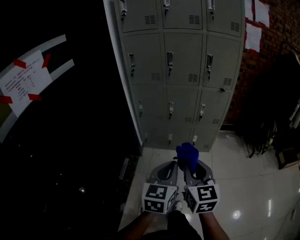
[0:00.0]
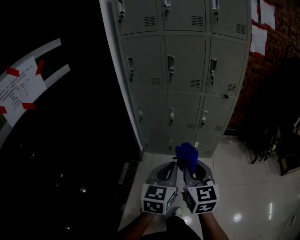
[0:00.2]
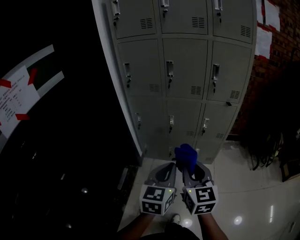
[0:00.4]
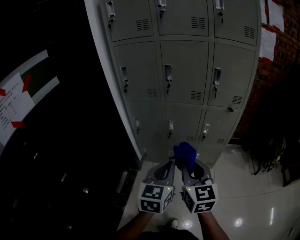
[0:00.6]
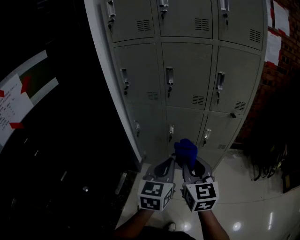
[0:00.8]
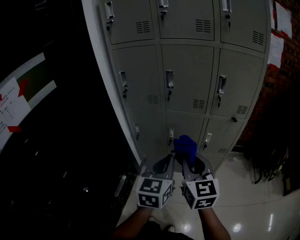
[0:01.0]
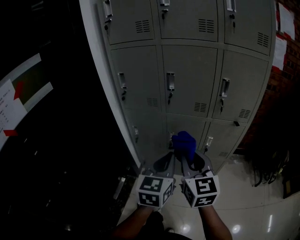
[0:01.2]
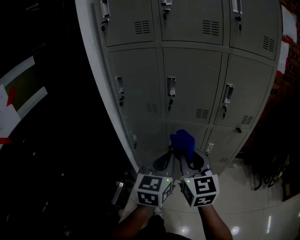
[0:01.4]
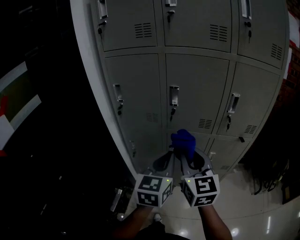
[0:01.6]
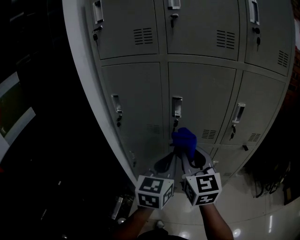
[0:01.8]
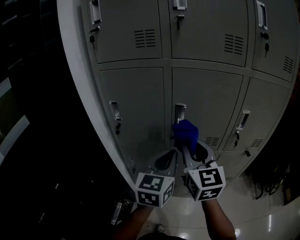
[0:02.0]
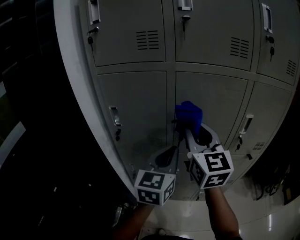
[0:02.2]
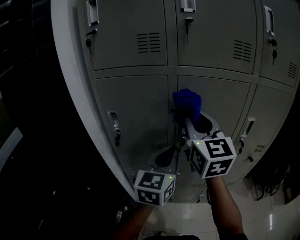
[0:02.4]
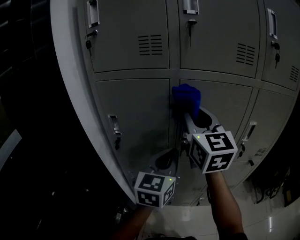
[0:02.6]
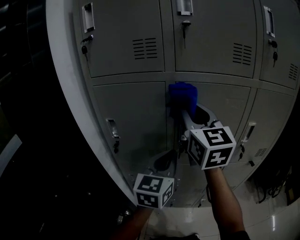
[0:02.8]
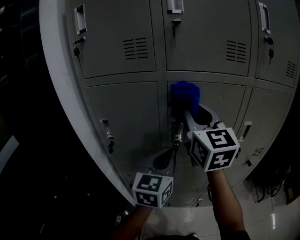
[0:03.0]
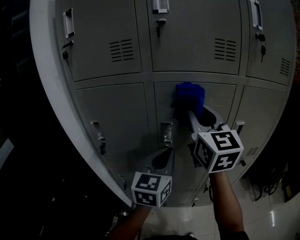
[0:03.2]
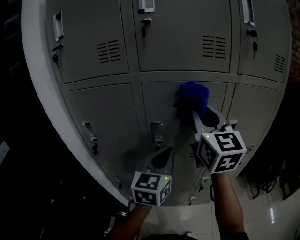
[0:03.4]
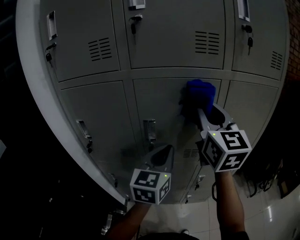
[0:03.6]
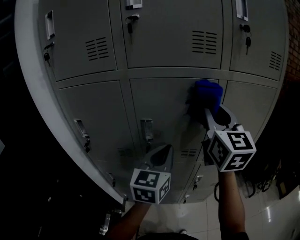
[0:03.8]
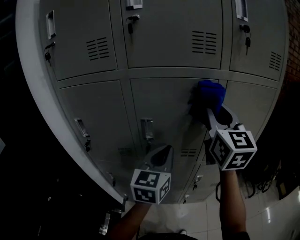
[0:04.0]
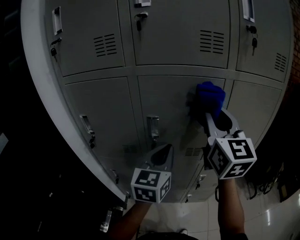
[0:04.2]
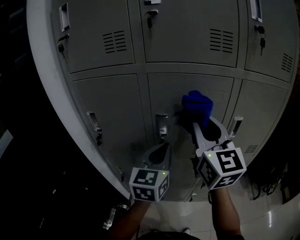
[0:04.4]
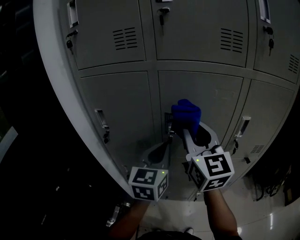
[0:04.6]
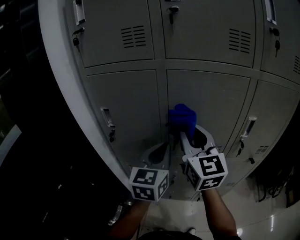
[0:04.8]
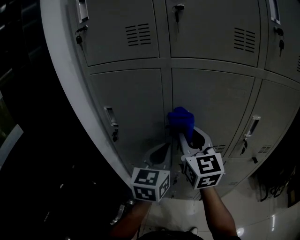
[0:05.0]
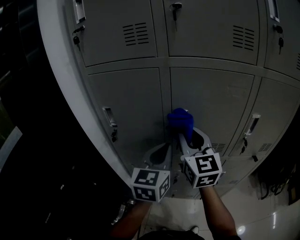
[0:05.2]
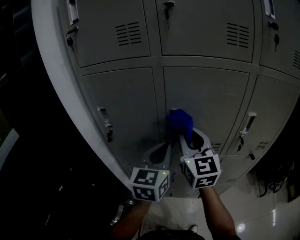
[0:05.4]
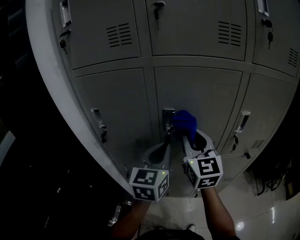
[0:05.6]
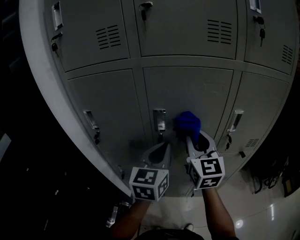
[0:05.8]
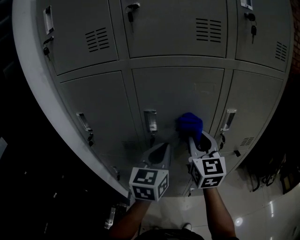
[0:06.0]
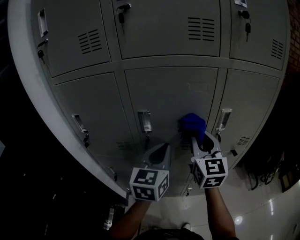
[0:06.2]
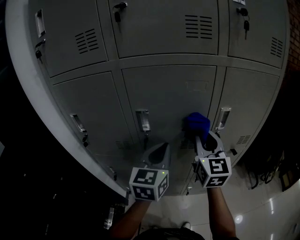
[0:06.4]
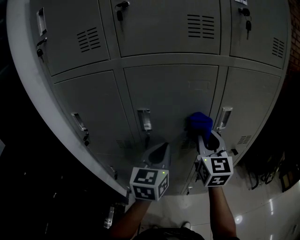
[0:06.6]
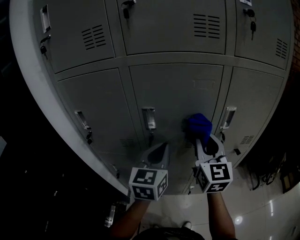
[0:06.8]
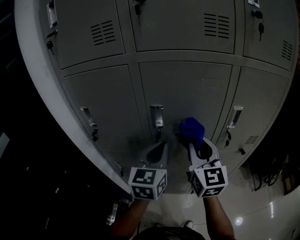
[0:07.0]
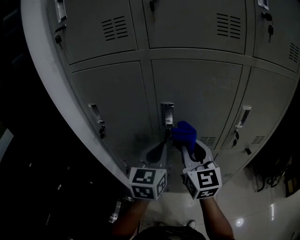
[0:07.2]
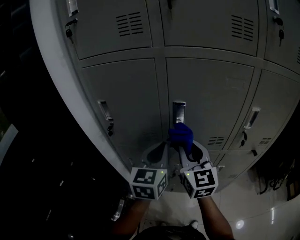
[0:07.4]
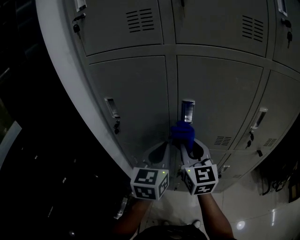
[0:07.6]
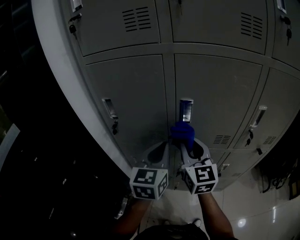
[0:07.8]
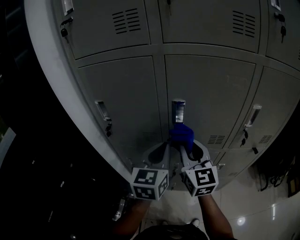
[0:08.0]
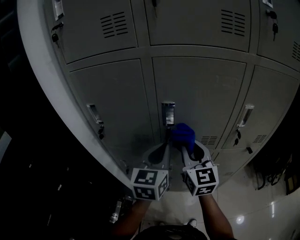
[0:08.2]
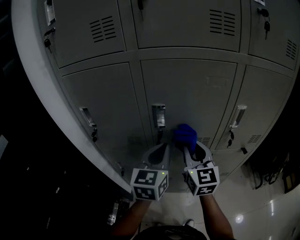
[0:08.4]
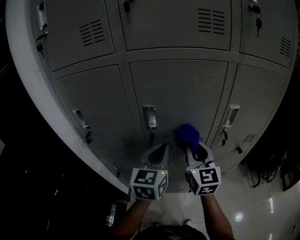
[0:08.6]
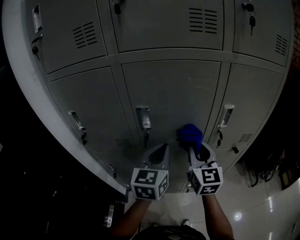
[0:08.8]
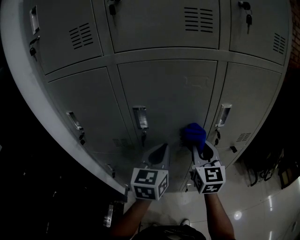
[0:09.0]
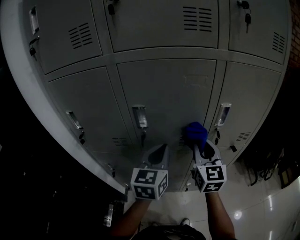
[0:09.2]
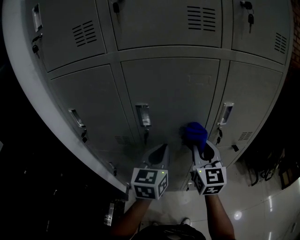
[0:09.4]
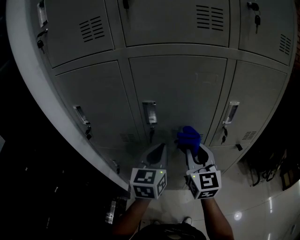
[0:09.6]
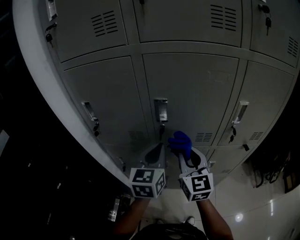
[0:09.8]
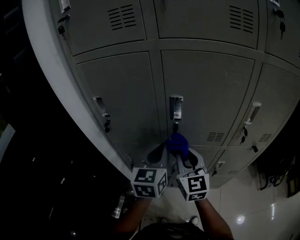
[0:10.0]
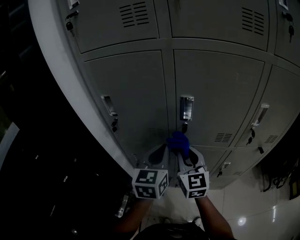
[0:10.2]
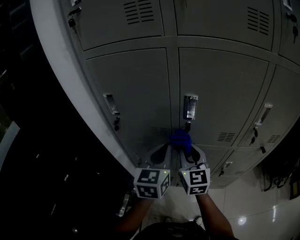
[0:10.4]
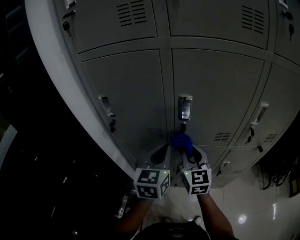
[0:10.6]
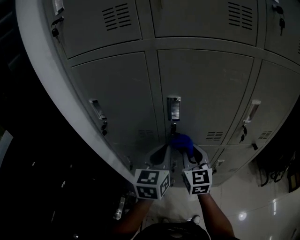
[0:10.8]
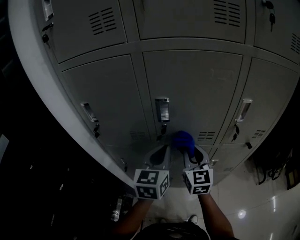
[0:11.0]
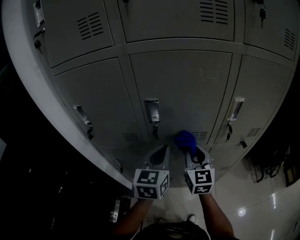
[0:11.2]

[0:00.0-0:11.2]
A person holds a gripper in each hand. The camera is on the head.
0:00.0 to 0:01.6: The pair of grippers is taken forward, about 40 cm.
0:01.6 to 0:03.2: The left gripper travels forward by about 20 cm, while the right gripper moves forward and upward, roughly 30 cm.
0:03.2 to 0:04.8: The right gripper travels downward by roughly 10 cm, and moves some 10 cm to the right and comes back.
0:04.8 to 0:06.4: The left gripper heads to the right, covering roughly 10 cm; the right gripper goes roughly 15 cm to the right.
0:06.4 to 0:08.0: The grippers both shift to the left by some 15 cm.
0:08.0 to 0:09.6: The two grippers go roughly 10 cm to the right.
0:09.6 to 0:11.2: The left gripper travels to the left and back again, roughly 10 cm each way. Meanwhile the right gripper travels downward by about 5 cm, and travels to the left and back again, roughly 15 cm each way.

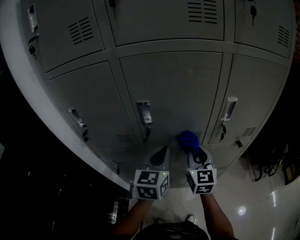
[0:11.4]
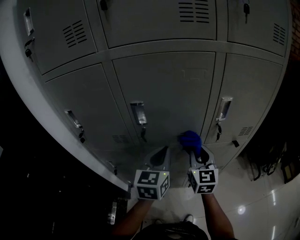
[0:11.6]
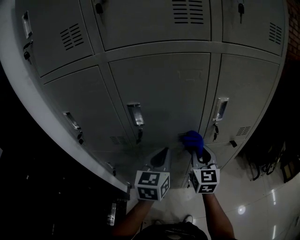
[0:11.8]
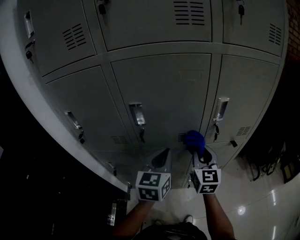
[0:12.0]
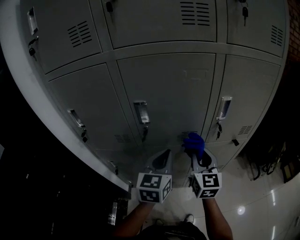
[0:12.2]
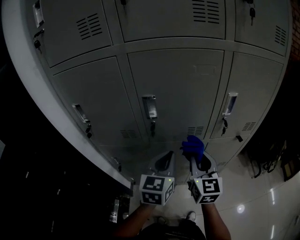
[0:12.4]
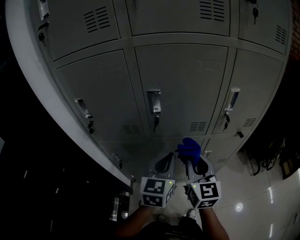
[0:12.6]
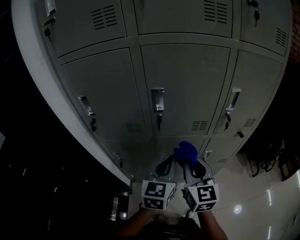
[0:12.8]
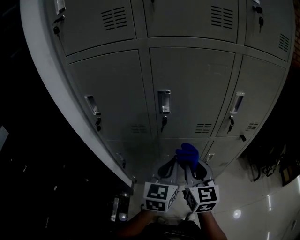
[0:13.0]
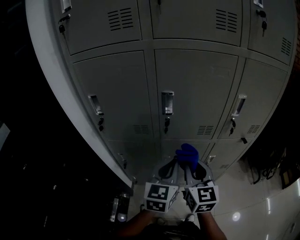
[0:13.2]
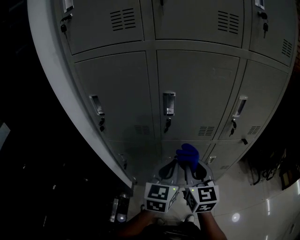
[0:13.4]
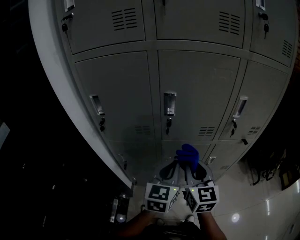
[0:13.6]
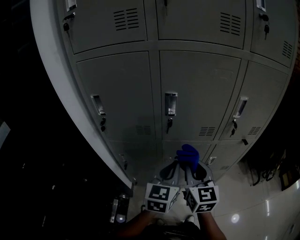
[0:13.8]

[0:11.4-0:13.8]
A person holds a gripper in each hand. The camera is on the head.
0:11.4 to 0:12.6: The right gripper heads backward, covering approximately 10 cm; the left gripper shifts roughly 5 cm backward.
0:12.6 to 0:13.8: The grippers make only small movements.

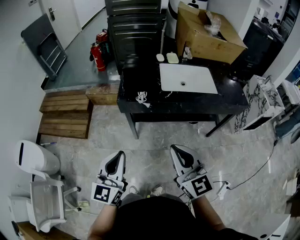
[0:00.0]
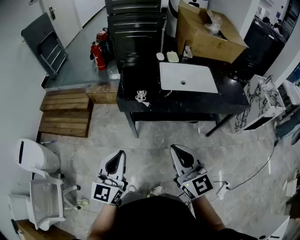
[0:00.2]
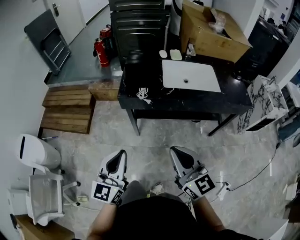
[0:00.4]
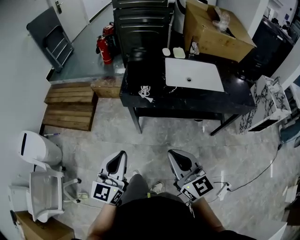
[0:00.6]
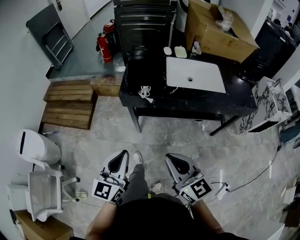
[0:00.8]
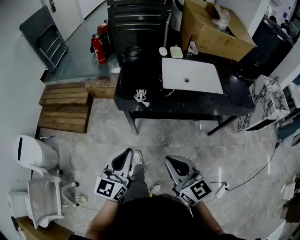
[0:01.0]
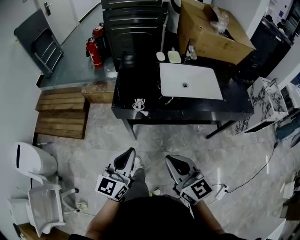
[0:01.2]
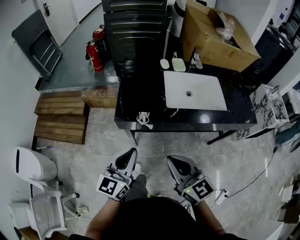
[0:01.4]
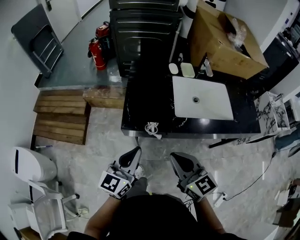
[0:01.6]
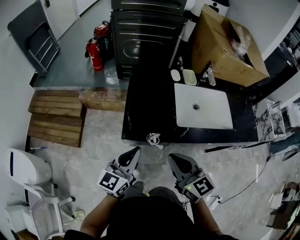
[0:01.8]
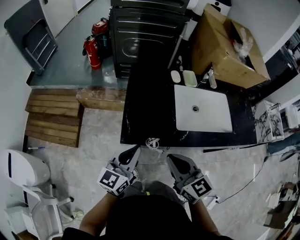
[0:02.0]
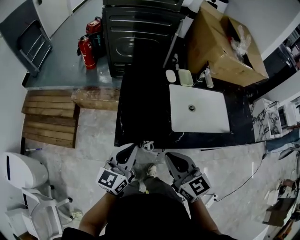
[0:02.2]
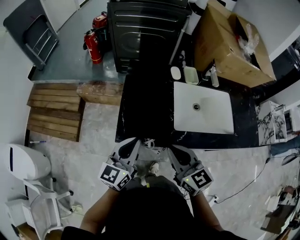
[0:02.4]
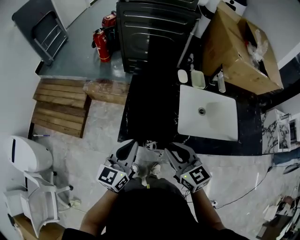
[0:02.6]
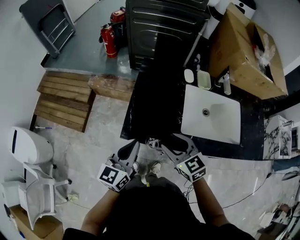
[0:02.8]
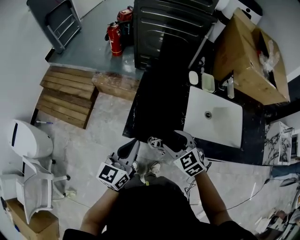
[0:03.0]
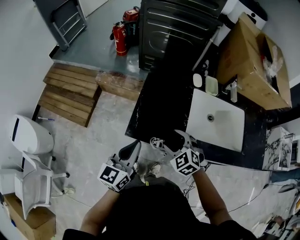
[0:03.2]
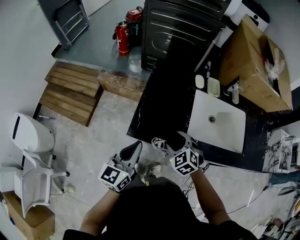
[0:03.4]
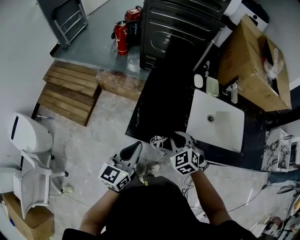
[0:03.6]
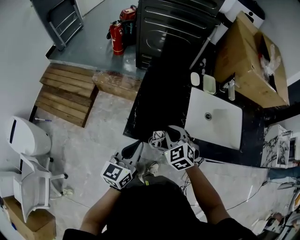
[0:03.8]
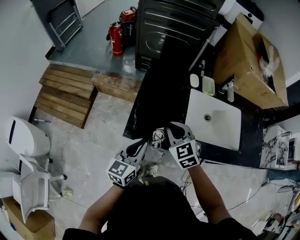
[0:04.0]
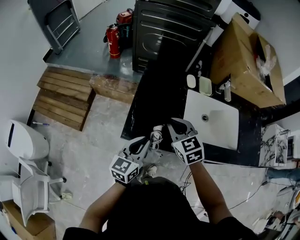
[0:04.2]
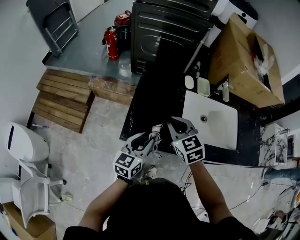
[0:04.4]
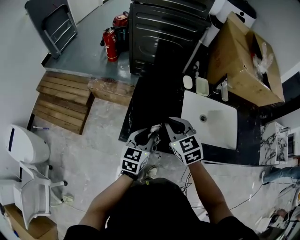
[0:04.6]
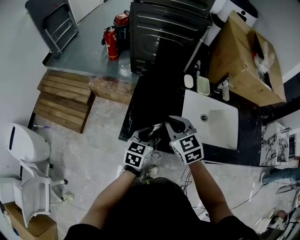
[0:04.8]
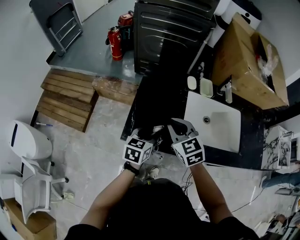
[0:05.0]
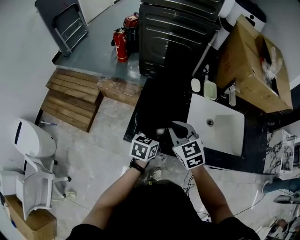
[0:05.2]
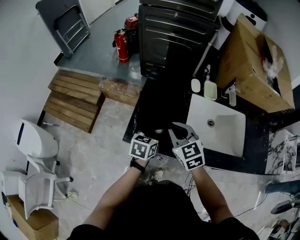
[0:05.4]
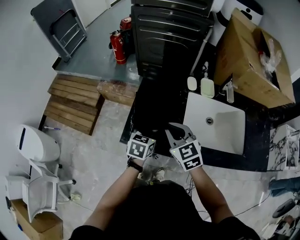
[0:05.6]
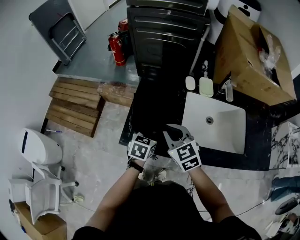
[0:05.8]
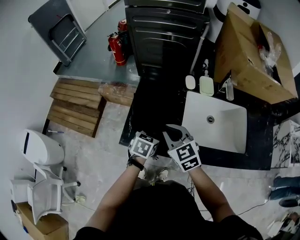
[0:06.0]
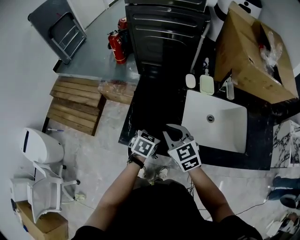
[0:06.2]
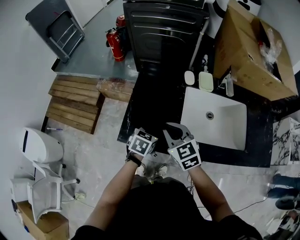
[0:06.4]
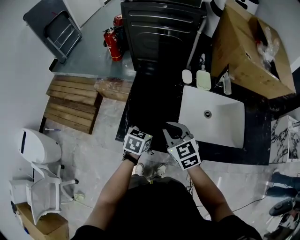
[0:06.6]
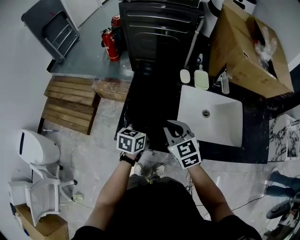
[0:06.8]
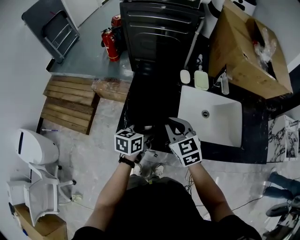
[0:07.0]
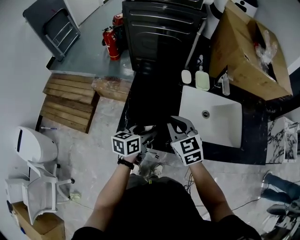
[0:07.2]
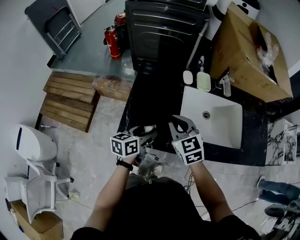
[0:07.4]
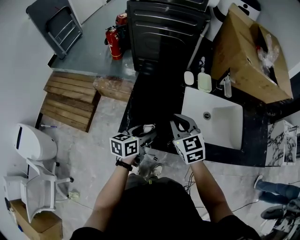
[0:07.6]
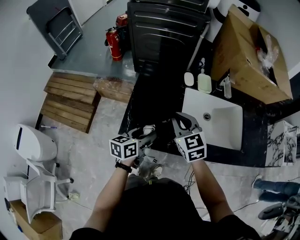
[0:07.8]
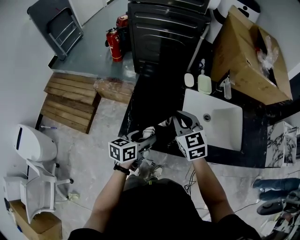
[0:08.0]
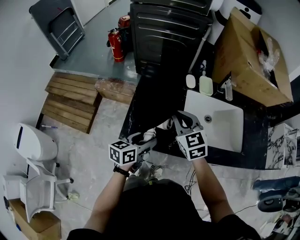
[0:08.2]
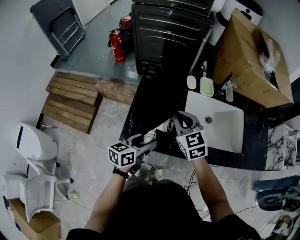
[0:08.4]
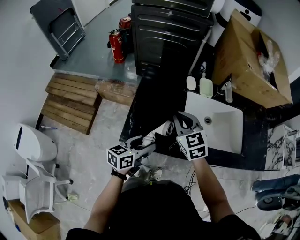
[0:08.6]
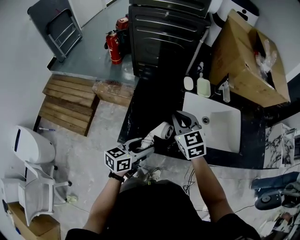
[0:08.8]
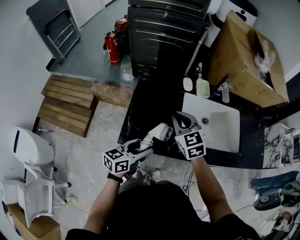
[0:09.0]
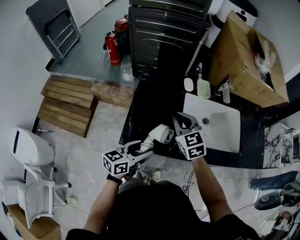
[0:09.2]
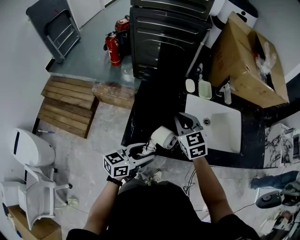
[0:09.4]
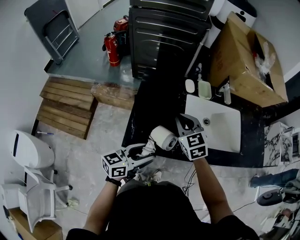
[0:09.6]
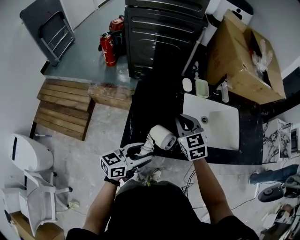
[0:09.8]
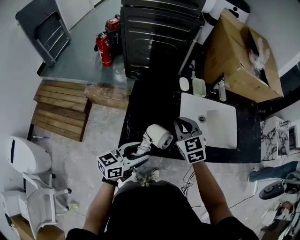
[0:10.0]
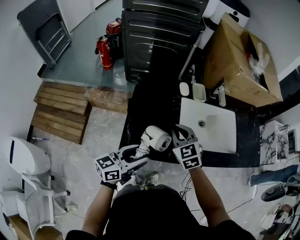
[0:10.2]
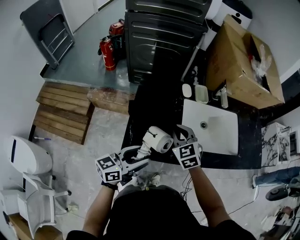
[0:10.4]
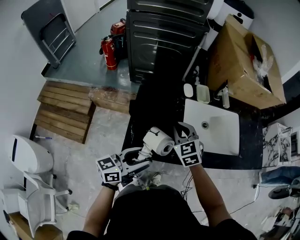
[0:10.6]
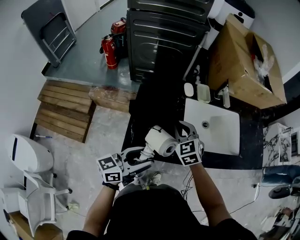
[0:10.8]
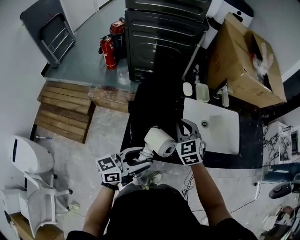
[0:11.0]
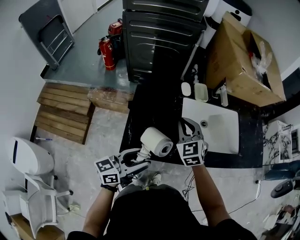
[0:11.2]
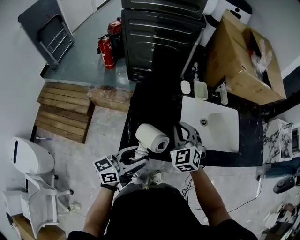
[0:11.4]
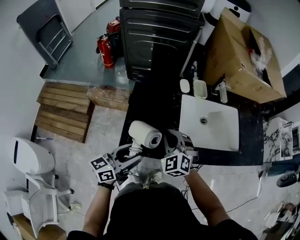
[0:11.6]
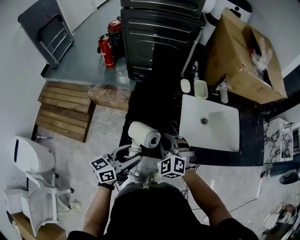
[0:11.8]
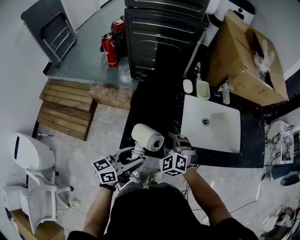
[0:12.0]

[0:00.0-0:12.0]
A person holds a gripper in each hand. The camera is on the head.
0:00.0 to 0:01.6: The grippers both shift forward by some 25 cm.
0:01.6 to 0:03.0: The right gripper heads forward and downward, covering some 20 cm, swivels some 40 degrees, and opens its fingers. Meanwhile the left gripper is displaced forward by approximately 10 cm.
0:03.0 to 0:04.4: The left gripper goes approximately 10 cm to the right and downward, while the right gripper shifts roughly 10 cm forward and upward, and closes its fingers.
0:04.4 to 0:06.0: The left gripper travels downward, forward and to the right by roughly 10 cm, tilts its fingers about 30 degrees downward, and opens up.
0:06.0 to 0:07.6: The left gripper ends up roughly 5 cm from where it was, and swivels about 40 degrees.
0:07.6 to 0:09.0: The left gripper moves backward, approximately 5 cm.
0:09.0 to 0:10.4: The left gripper travels upward by approximately 5 cm.
0:10.4 to 0:12.0: The right gripper travels backward and downward by roughly 10 cm, and rotates roughly 30 degrees.
